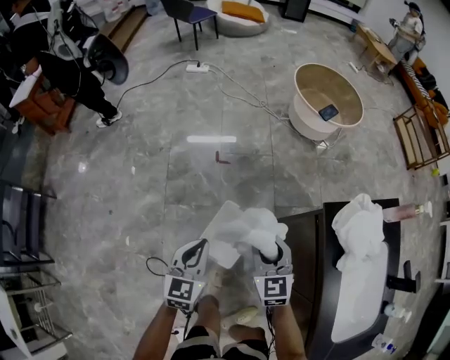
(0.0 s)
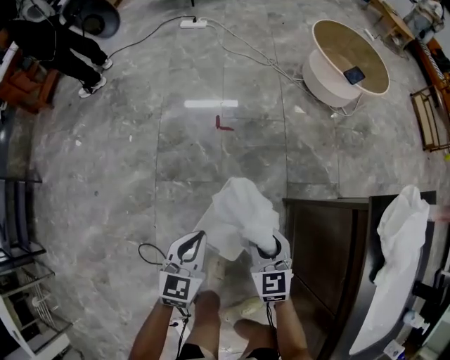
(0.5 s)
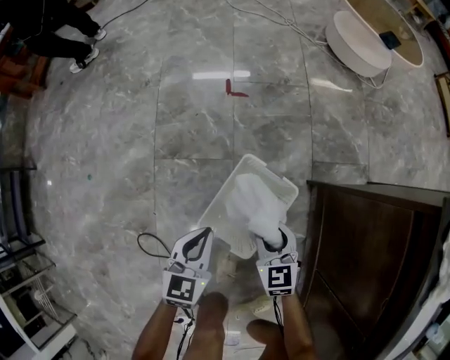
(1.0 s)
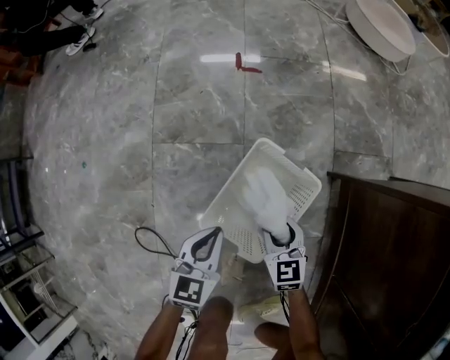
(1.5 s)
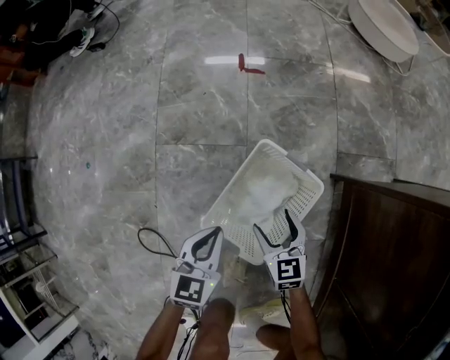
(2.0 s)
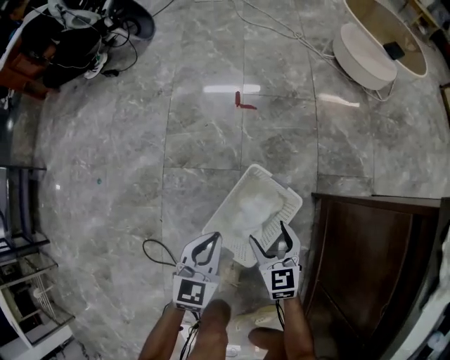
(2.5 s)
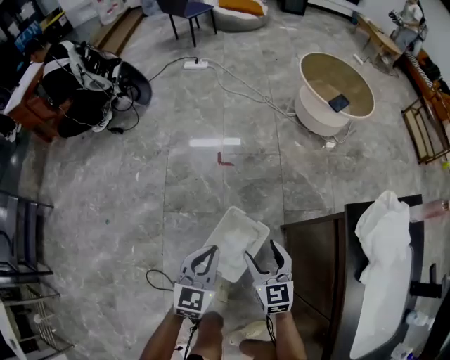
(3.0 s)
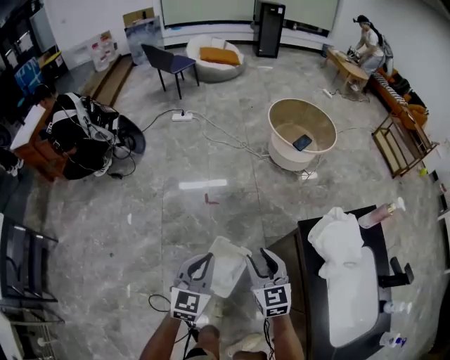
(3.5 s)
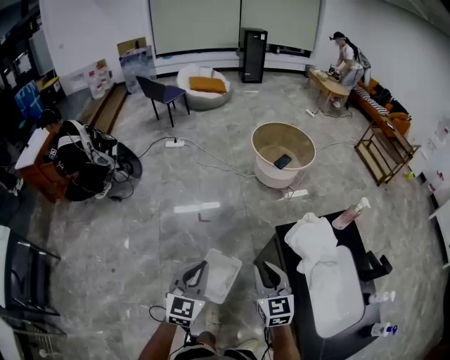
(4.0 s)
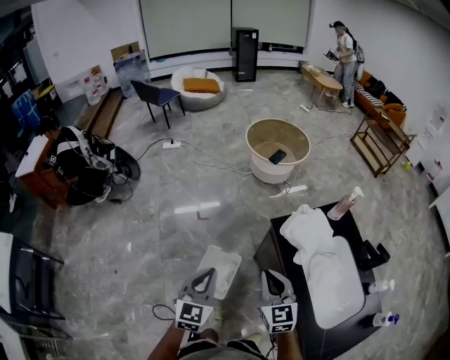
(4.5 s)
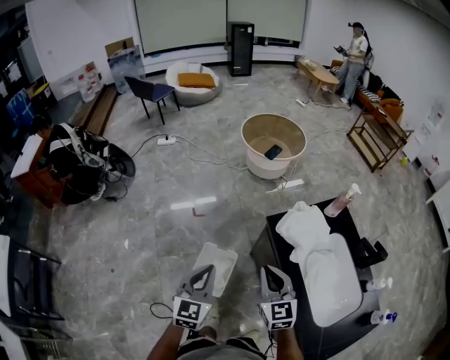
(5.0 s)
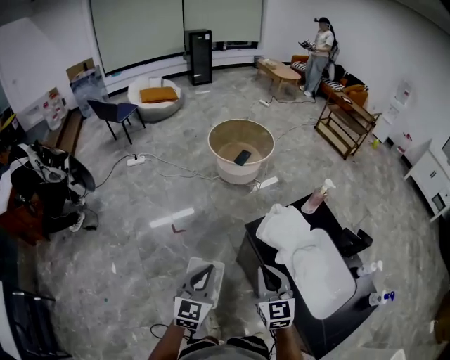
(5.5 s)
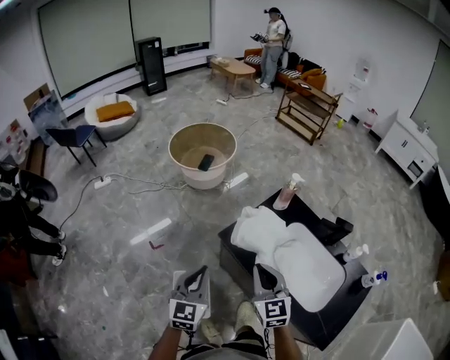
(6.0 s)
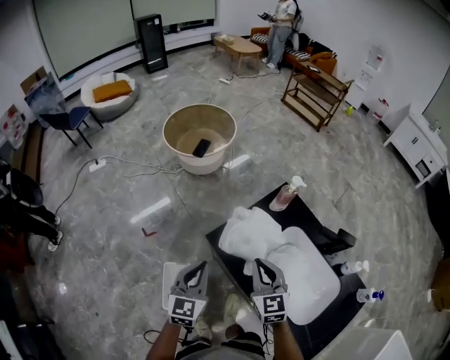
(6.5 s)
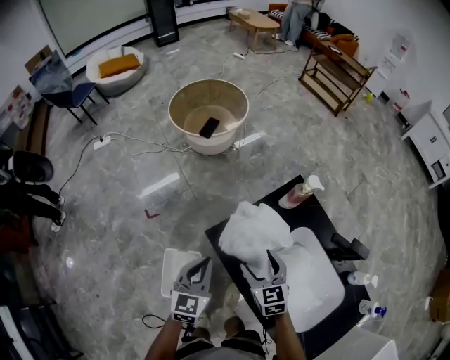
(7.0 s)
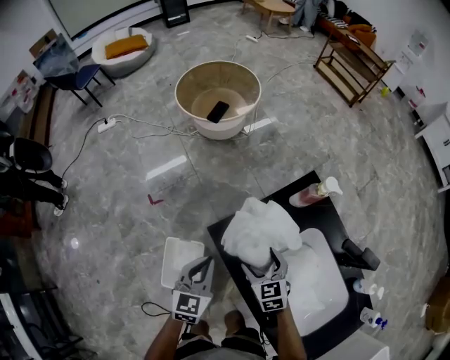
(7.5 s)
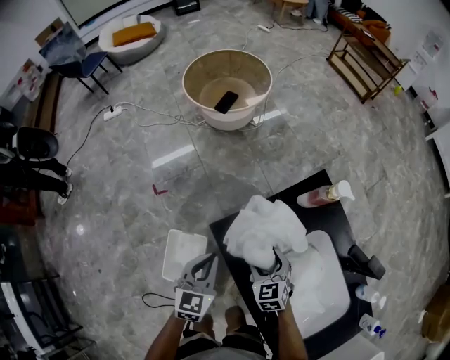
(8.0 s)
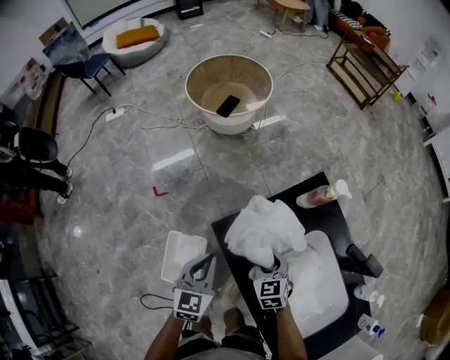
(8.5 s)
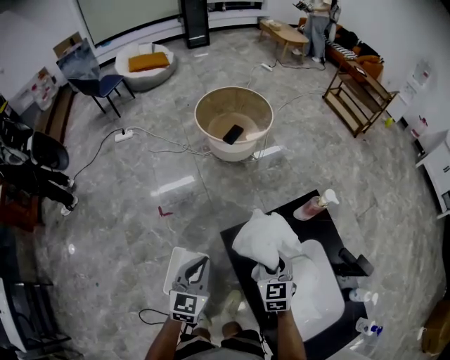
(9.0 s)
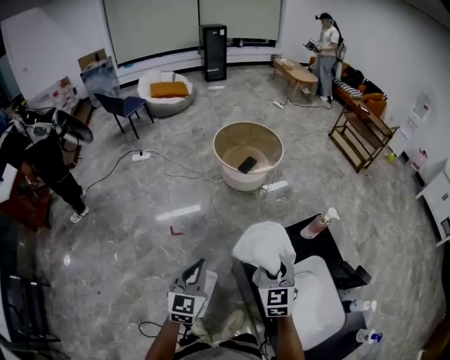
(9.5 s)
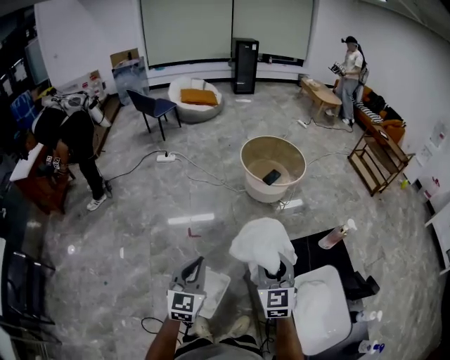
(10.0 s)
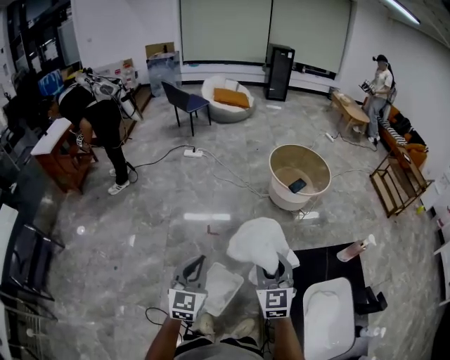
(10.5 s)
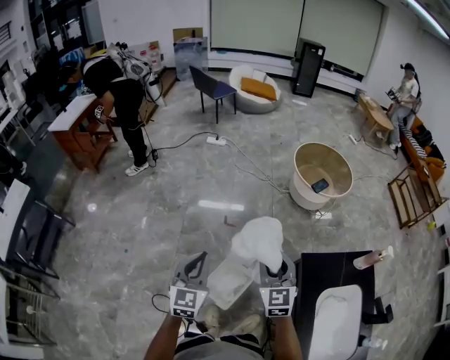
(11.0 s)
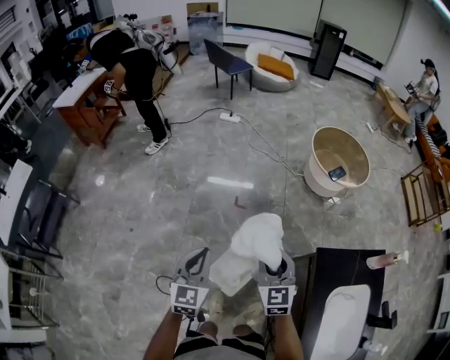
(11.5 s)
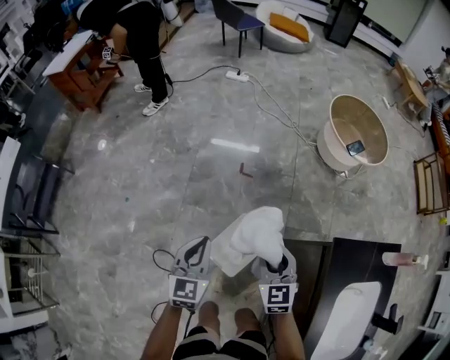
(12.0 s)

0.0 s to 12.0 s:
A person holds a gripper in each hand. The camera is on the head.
0.0 to 2.0 s: Both grippers move downward, about 50 cm. The right gripper changes its angle by some 20 degrees, and opens its fingers.
2.0 to 4.0 s: Both grippers move upward, roughly 70 cm. The right gripper changes its angle by roughly 30 degrees, and closes up. The left gripper changes its angle by approximately 30 degrees.
4.0 to 6.0 s: The right gripper changes place by approximately 15 cm, and turns by approximately 30 degrees; the left gripper moves about 20 cm, and rotates some 30 degrees.
6.0 to 8.0 s: The left gripper travels downward, forward and to the right by some 25 cm; the right gripper goes approximately 30 cm downward and forward, changes its angle by about 30 degrees, and opens its fingers.
8.0 to 10.0 s: The right gripper moves upward and to the left, roughly 35 cm, tilts its fingers roughly 30 degrees upward, and closes. Meanwhile the left gripper shifts about 35 cm to the left, upward and backward, and turns by roughly 30 degrees.
10.0 to 12.0 s: The grippers both shift to the left and downward by roughly 30 cm. The left gripper swivels roughly 20 degrees, while the right gripper turns by about 30 degrees.

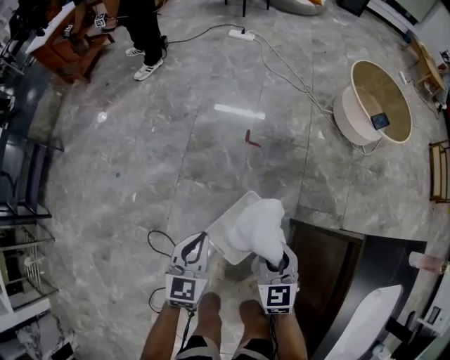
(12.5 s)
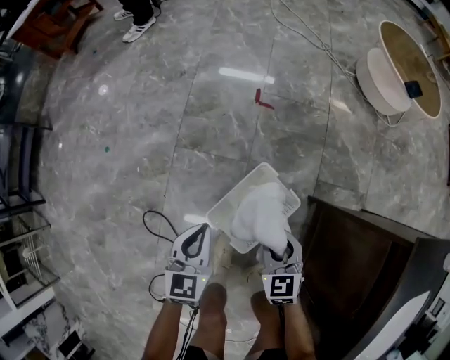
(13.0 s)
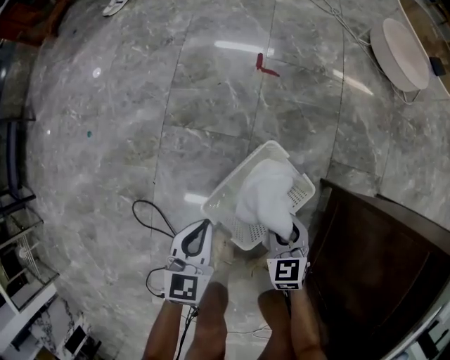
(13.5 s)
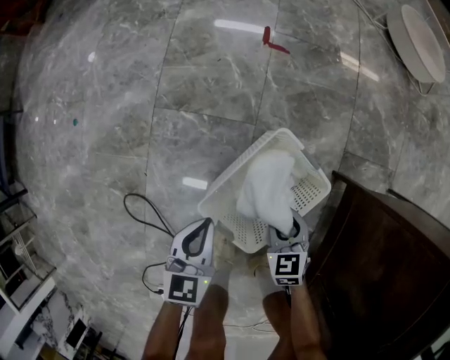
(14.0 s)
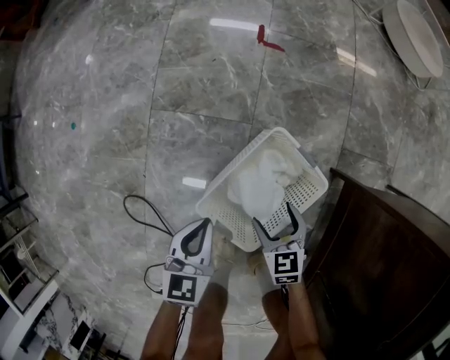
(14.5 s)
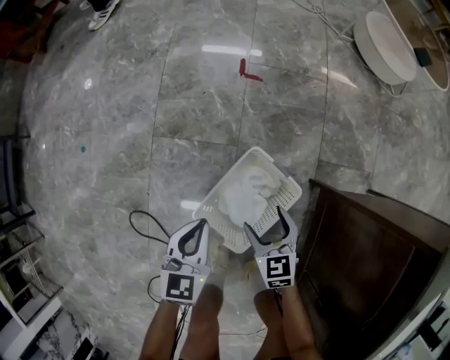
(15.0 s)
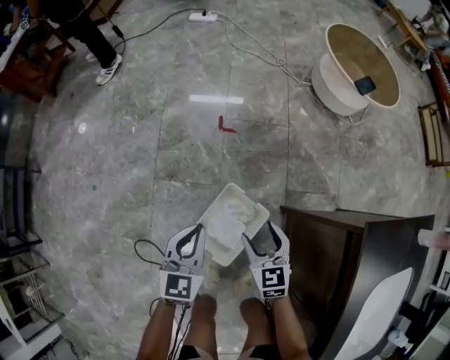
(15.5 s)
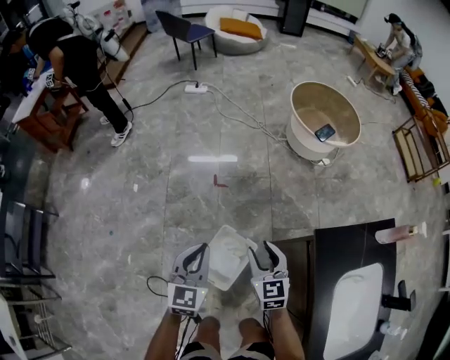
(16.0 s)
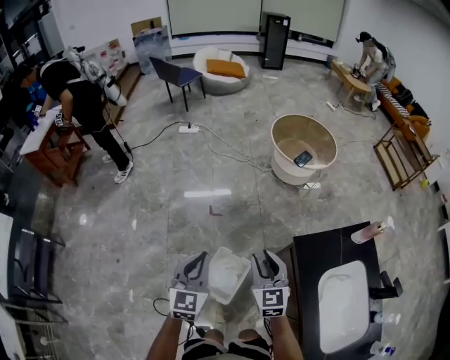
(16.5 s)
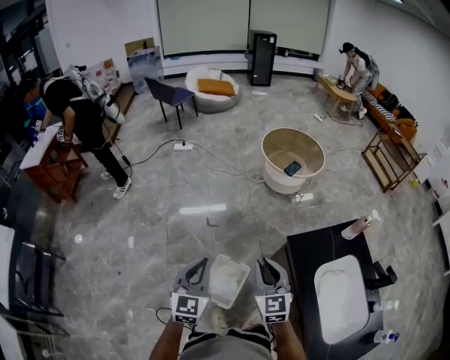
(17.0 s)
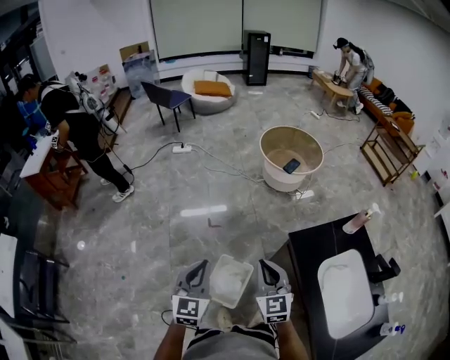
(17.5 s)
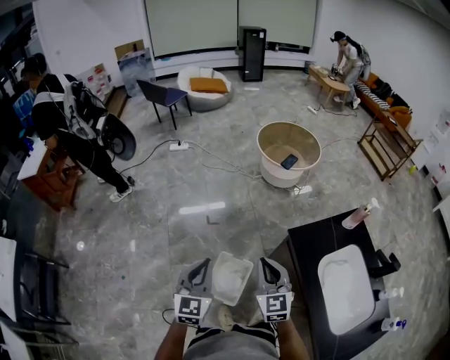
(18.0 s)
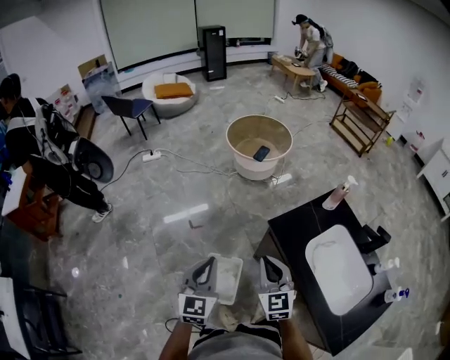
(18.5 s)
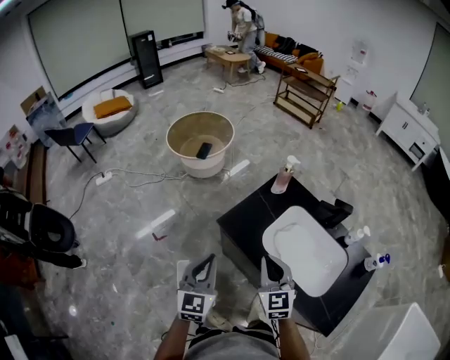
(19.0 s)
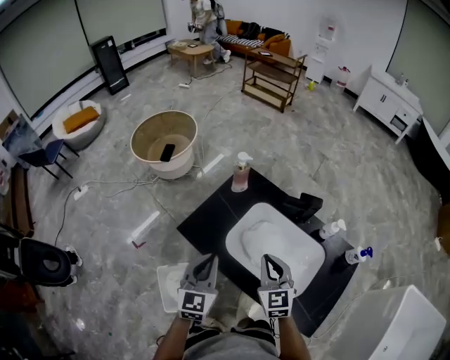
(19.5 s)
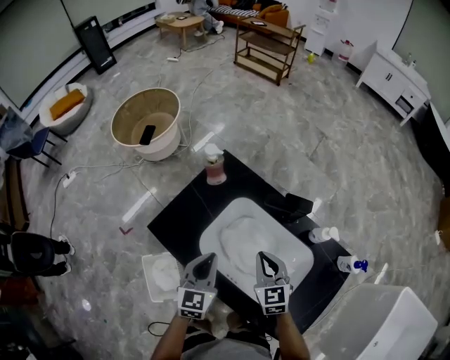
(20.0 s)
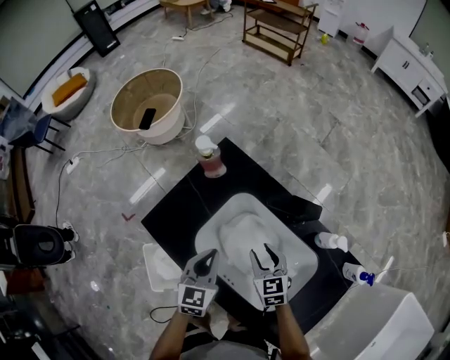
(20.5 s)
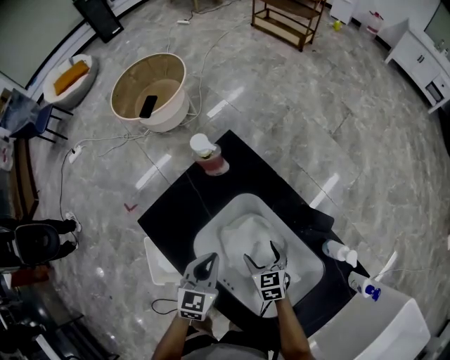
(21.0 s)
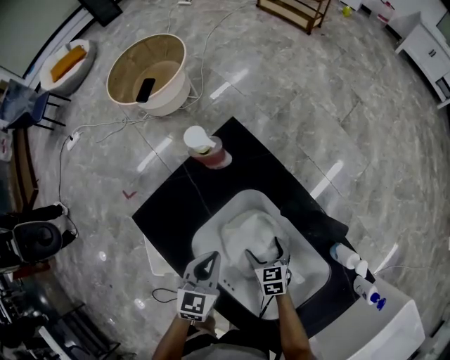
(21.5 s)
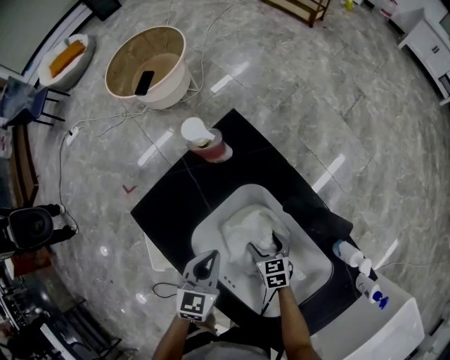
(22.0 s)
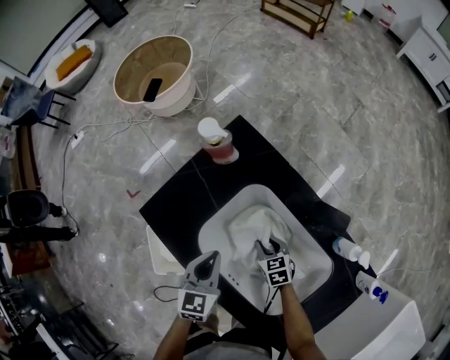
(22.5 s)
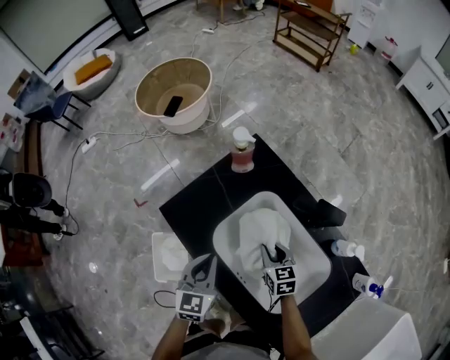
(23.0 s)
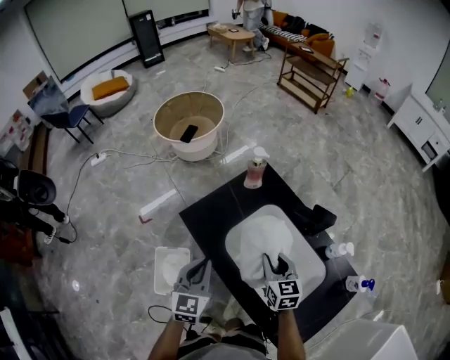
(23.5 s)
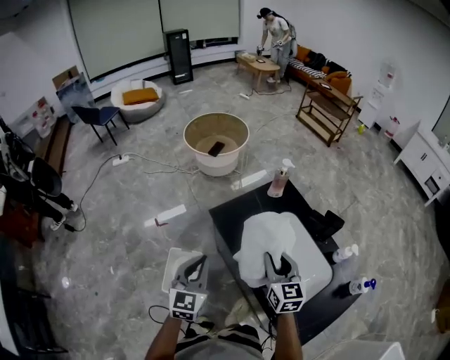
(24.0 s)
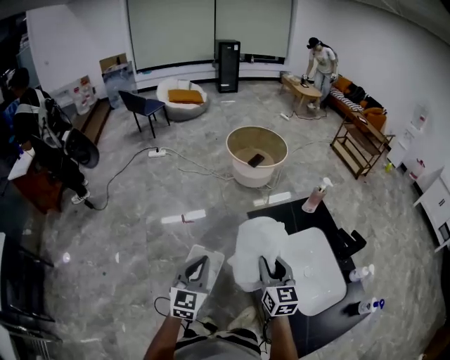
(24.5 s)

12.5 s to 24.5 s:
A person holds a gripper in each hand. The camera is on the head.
12.5 to 14.5 s: The grippers both shift downward by about 40 cm. The right gripper turns by approximately 20 degrees, and opens up.
14.5 to 16.5 s: Both grippers travel together upward, approximately 70 cm. The right gripper tilts its fingers about 30 degrees upward, and closes up. Meanwhile the left gripper rotates about 40 degrees.
16.5 to 18.5 s: The left gripper shifts about 10 cm to the right, upward and backward. Meanwhile the right gripper moves backward, to the right and upward, some 15 cm.
18.5 to 20.5 s: The two grippers travel together, approximately 50 cm. The left gripper rotates some 30 degrees; the right gripper turns by approximately 30 degrees.
20.5 to 22.5 s: The right gripper travels downward by approximately 15 cm, turns by about 20 degrees, and opens and closes again. Meanwhile the left gripper moves downward, some 5 cm.
22.5 to 24.5 s: The left gripper goes approximately 50 cm to the left, backward and upward, and turns by about 40 degrees; the right gripper shifts some 50 cm upward, to the left and backward, and tilts its fingers approximately 40 degrees upward.

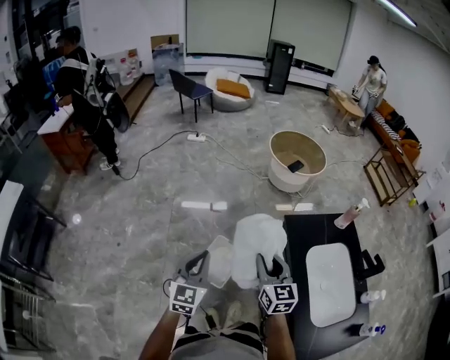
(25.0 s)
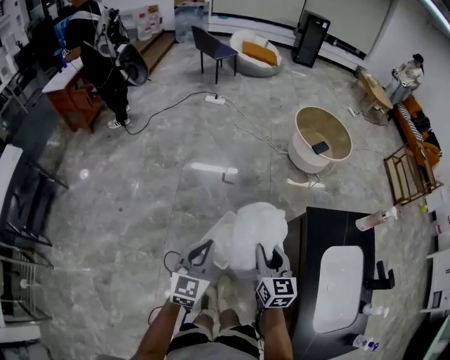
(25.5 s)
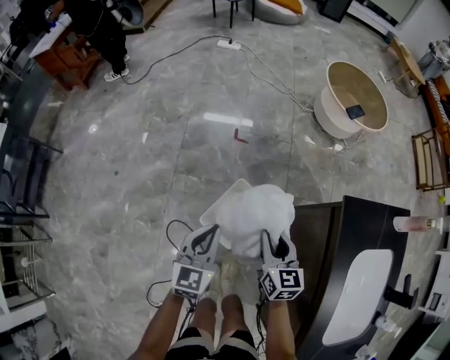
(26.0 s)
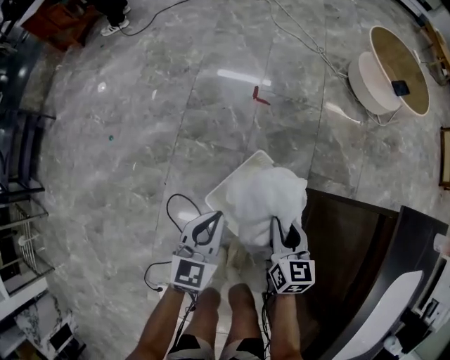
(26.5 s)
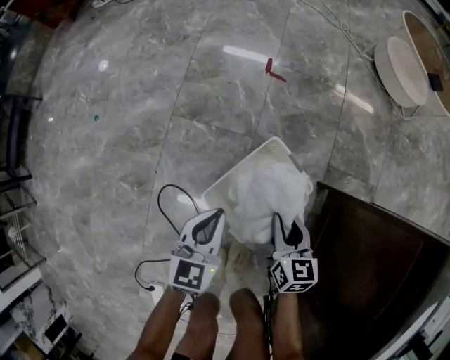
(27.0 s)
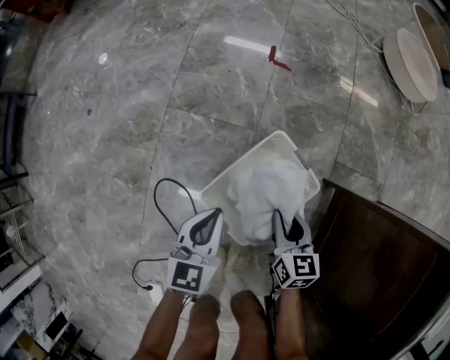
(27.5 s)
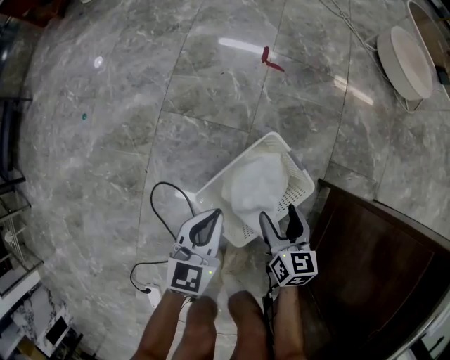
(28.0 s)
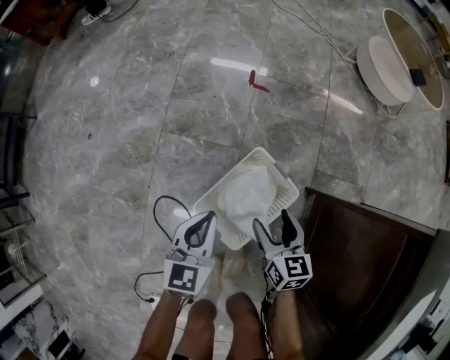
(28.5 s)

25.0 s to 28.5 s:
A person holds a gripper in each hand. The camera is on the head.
25.0 to 27.0 s: Both grippers travel together downward, about 60 cm. The right gripper swivels about 30 degrees, while the left gripper rotates roughly 30 degrees.
27.0 to 28.5 s: The left gripper reaches approximately 5 cm downward, then returns; the right gripper moves roughly 5 cm downward and comes back, and opens up.
